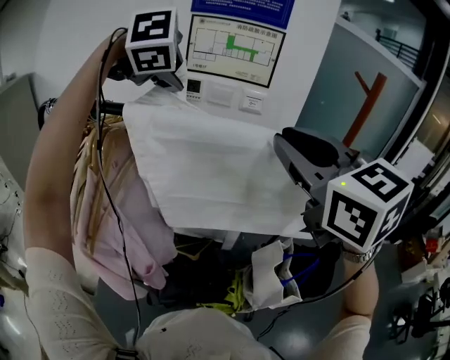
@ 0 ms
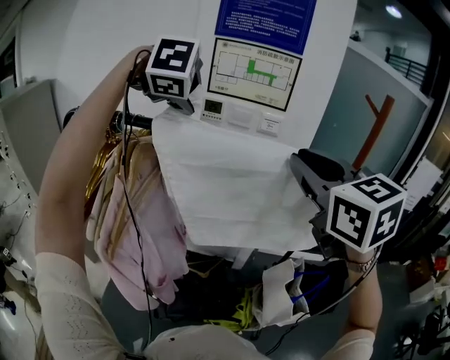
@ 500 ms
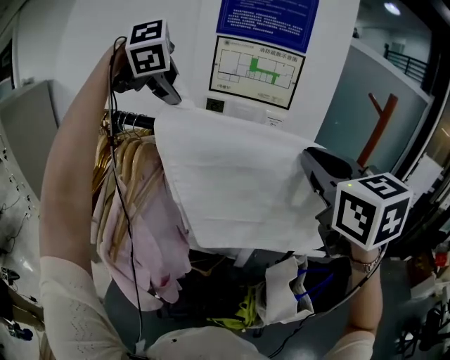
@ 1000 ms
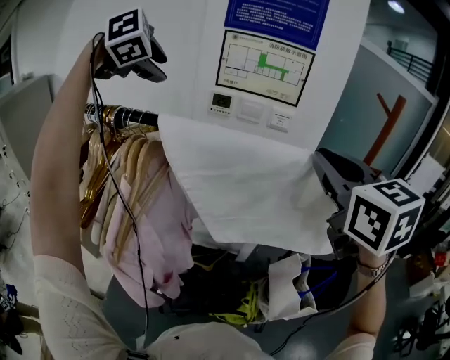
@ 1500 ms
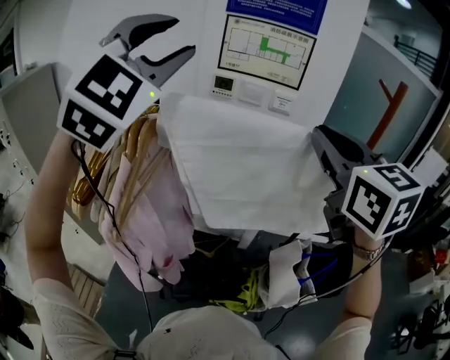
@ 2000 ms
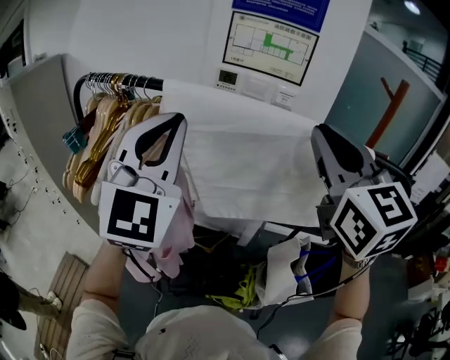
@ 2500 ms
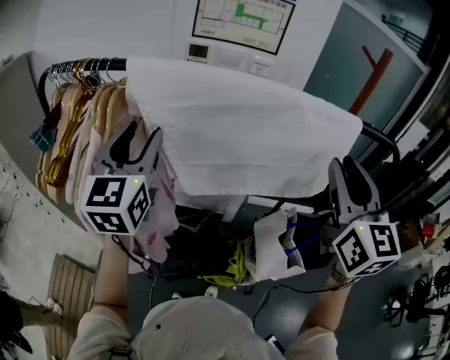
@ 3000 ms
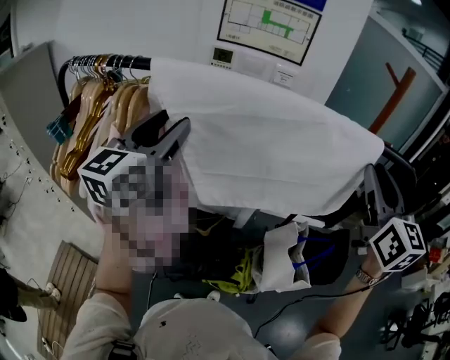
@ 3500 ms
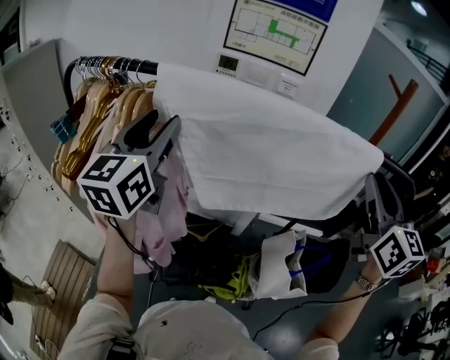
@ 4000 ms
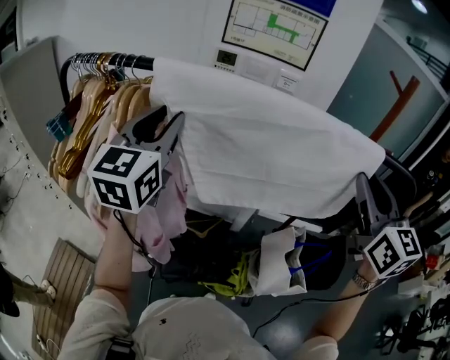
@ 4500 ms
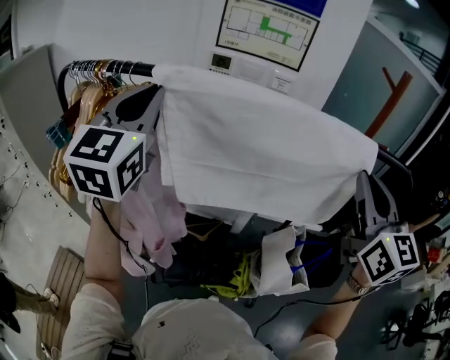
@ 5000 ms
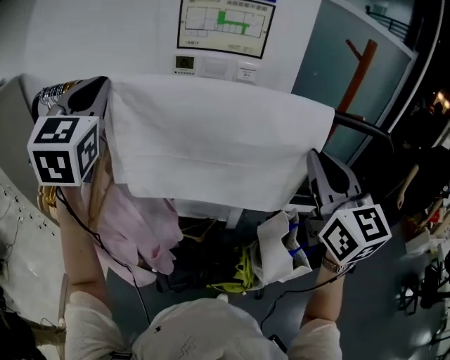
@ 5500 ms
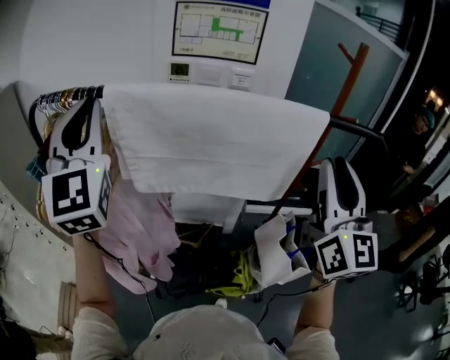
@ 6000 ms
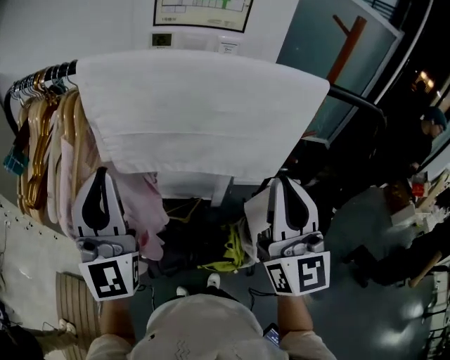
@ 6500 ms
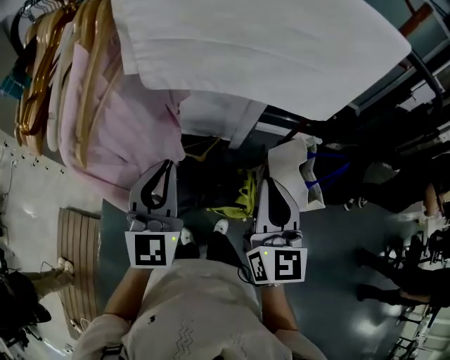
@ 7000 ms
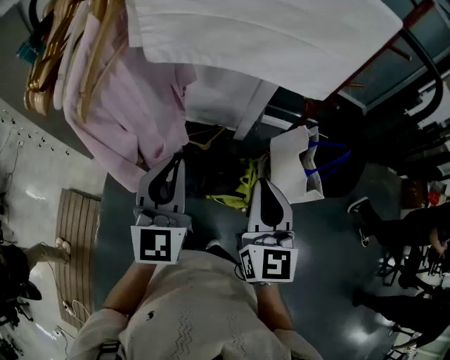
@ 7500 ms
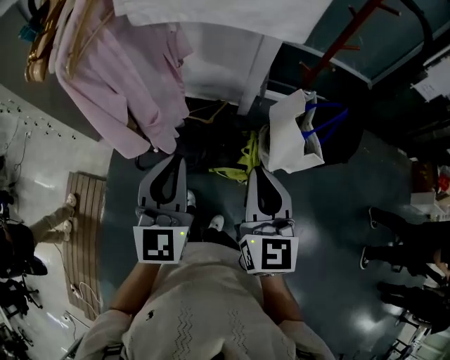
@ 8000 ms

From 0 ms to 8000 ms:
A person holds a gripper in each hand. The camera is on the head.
From 0 ms to 2000 ms: The left gripper goes roughly 20 cm backward, upward and to the left, angles its fingers upward, by roughly 60 degrees, and opens its fingers.
From 2000 ms to 4000 ms: The left gripper goes approximately 20 cm downward, rolls counterclockwise, seen from behind, by some 60 degrees, and closes, then reopens, while the right gripper travels to the right by roughly 15 cm.
From 4000 ms to 6000 ms: The left gripper is displaced upward by roughly 10 cm, swivels roughly 40 degrees, and closes up, while the right gripper is displaced to the left and backward by roughly 10 cm, and turns by approximately 20 degrees.
From 6000 ms to 8000 ms: The left gripper moves downward, backward and to the right, roughly 50 cm, and turns by approximately 40 degrees, while the right gripper moves downward and backward, some 40 cm, turns by roughly 30 degrees, and closes its fingers.

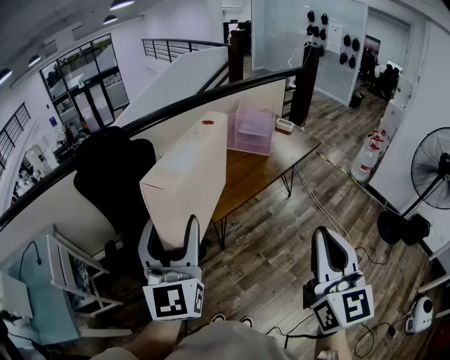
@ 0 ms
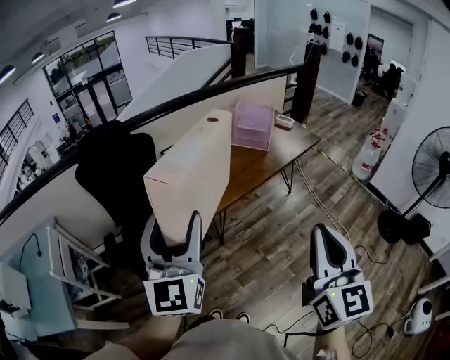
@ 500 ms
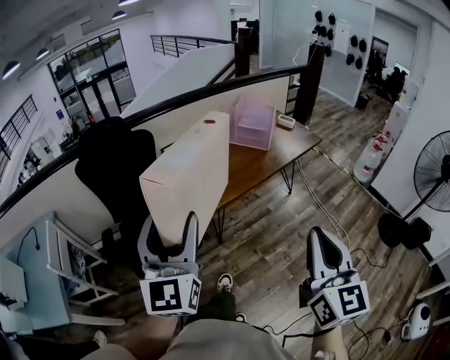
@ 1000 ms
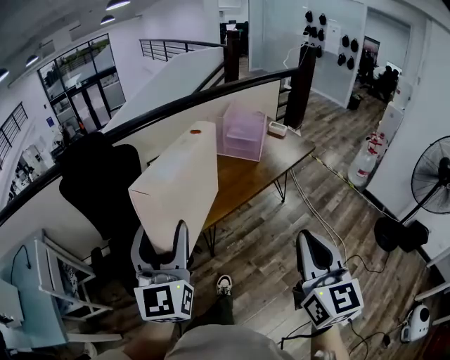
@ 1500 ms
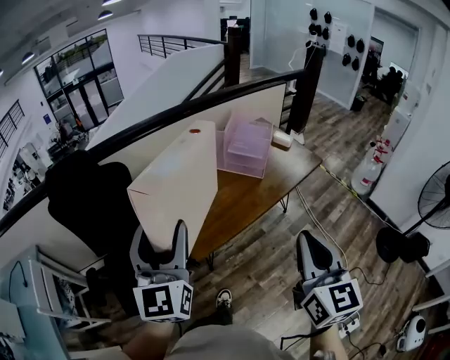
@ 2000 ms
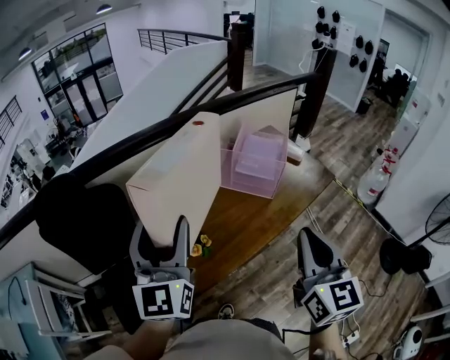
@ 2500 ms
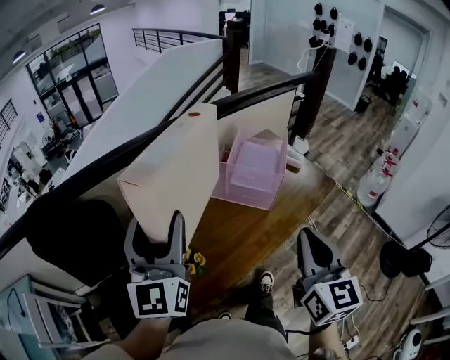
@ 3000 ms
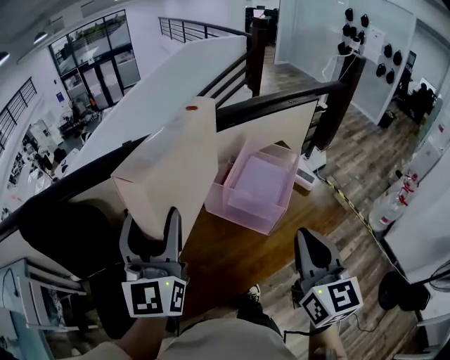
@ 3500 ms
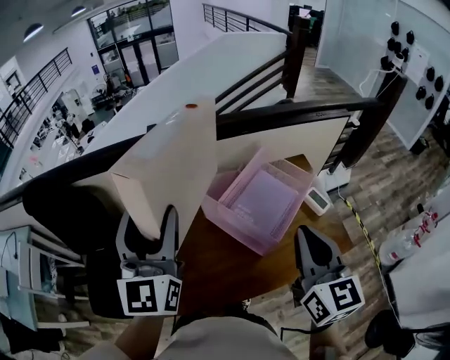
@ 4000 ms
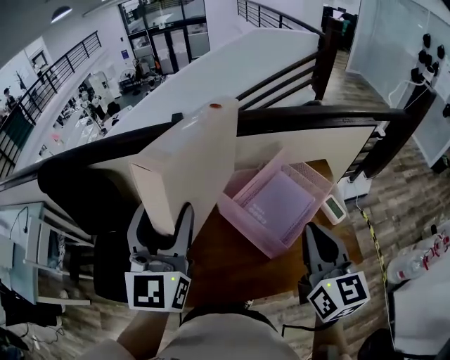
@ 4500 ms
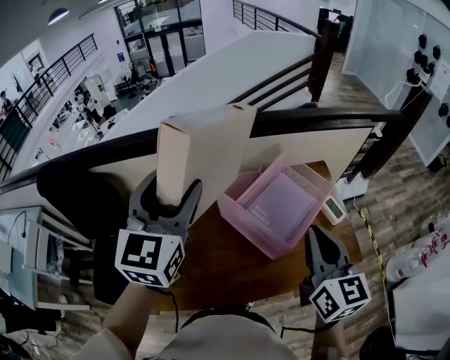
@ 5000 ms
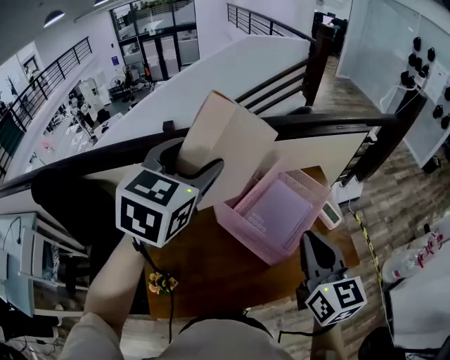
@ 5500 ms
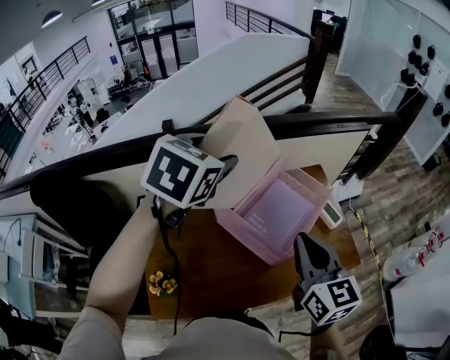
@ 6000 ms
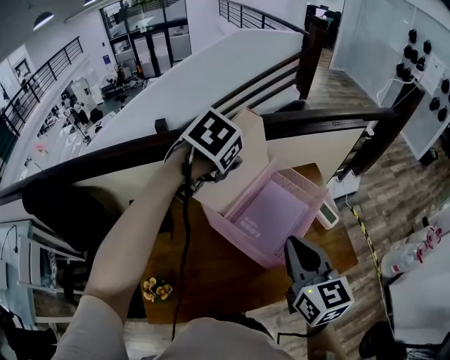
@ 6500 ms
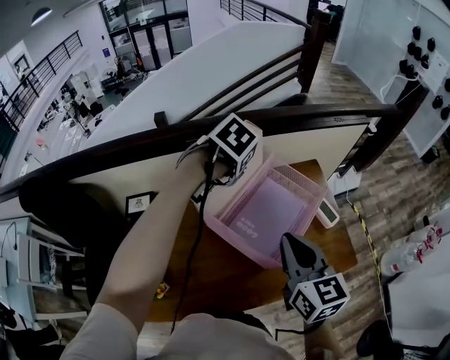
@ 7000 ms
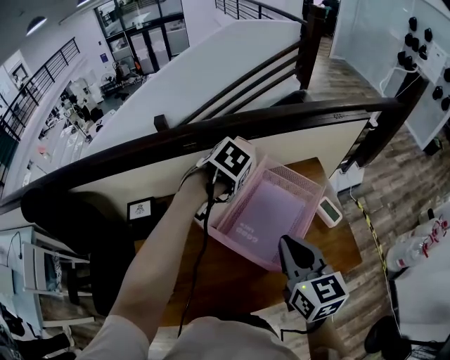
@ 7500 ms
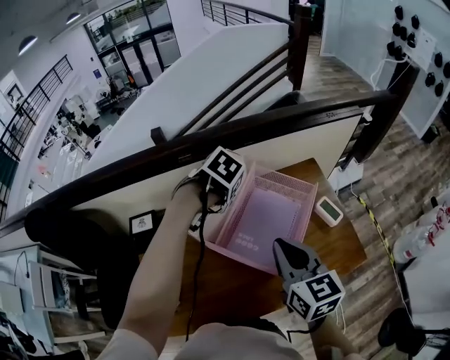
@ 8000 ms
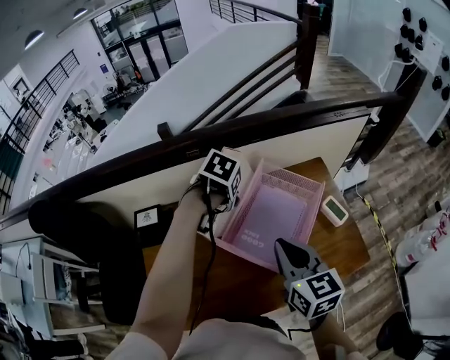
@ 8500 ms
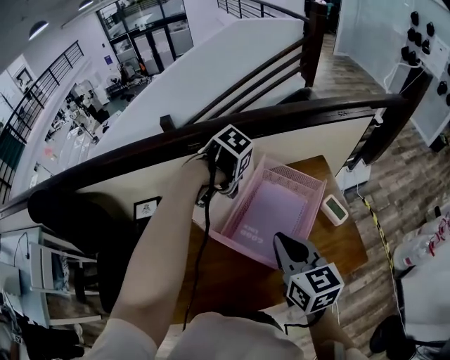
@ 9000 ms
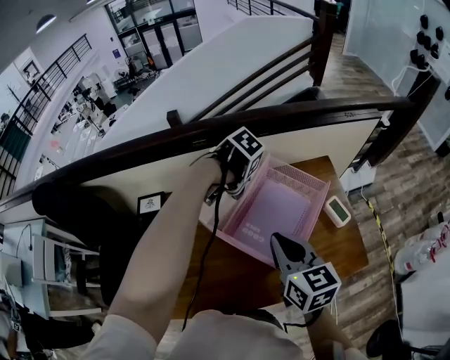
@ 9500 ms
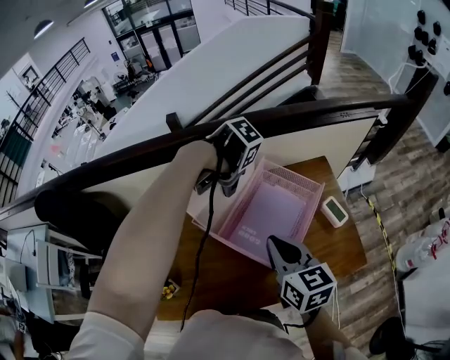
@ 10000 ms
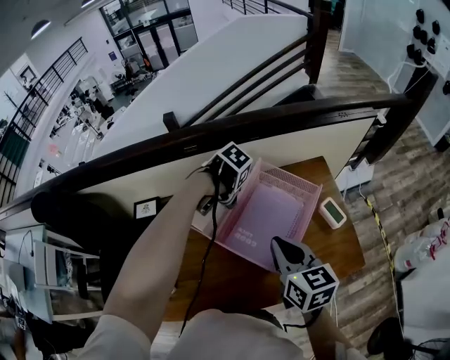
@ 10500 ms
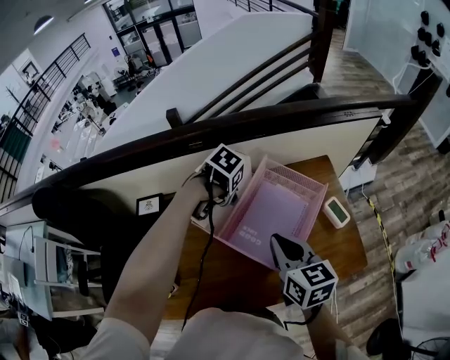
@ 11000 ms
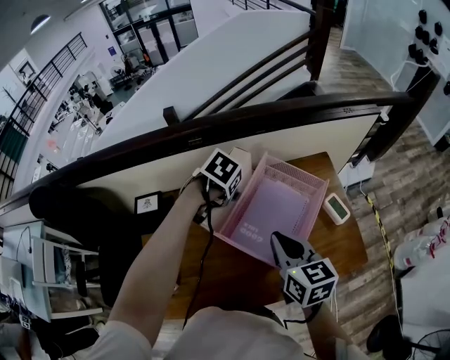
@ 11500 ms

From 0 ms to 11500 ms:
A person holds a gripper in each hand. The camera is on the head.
From 0 ms to 2000 ms: The grippers both shift forward by approximately 25 cm.
From 2000 ms to 4000 ms: Both grippers are carried forward, about 50 cm. The right gripper turns by roughly 20 degrees.
From 4000 ms to 6000 ms: The right gripper moves approximately 5 cm, while the left gripper travels forward and to the right by approximately 20 cm, and points its fingers approximately 40 degrees further downward.
From 6000 ms to 7500 ms: The left gripper shifts some 20 cm downward, and tips its fingers downward by roughly 40 degrees. Meanwhile the right gripper shifts approximately 5 cm downward.
From 7500 ms to 9500 ms: The left gripper swivels about 20 degrees.
From 9500 ms to 11500 ms: The left gripper rotates about 20 degrees.

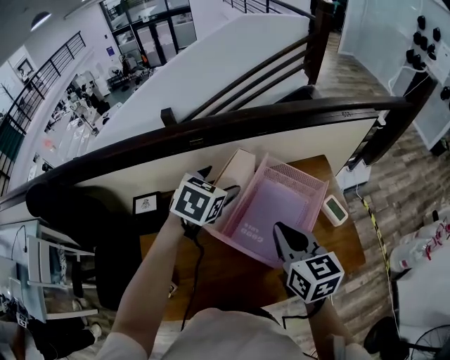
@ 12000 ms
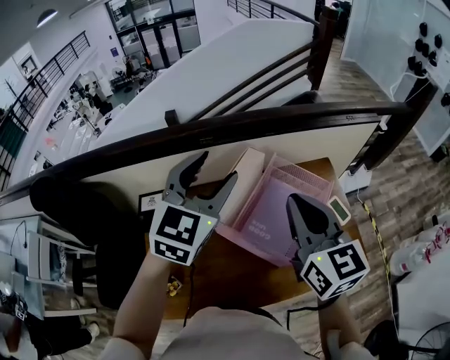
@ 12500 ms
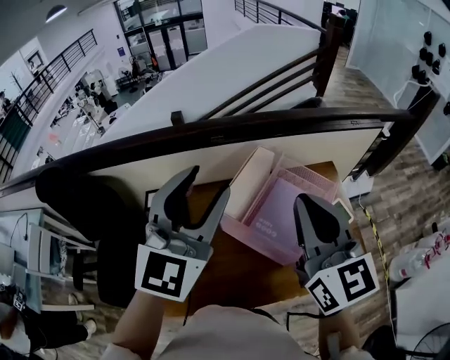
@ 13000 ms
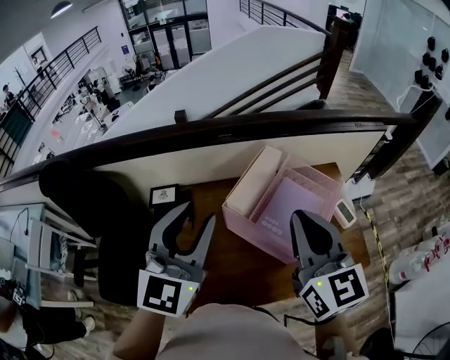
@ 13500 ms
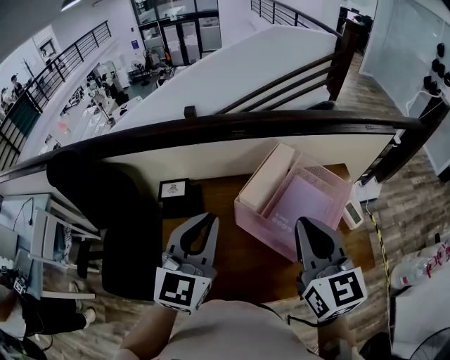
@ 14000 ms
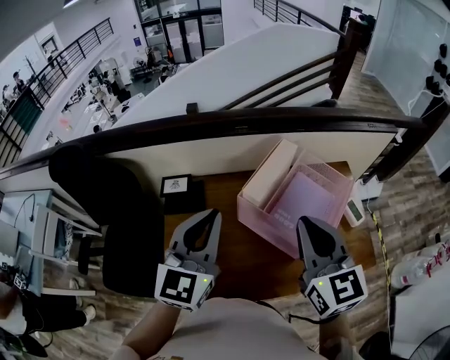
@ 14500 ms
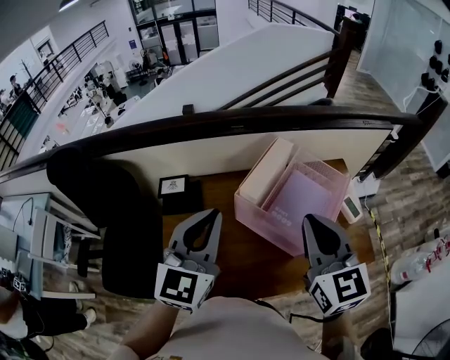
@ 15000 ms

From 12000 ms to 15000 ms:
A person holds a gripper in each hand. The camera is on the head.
From 12000 ms to 13500 ms: The left gripper moves backward, upward and to the left, some 30 cm, points its fingers roughly 40 degrees further upward, and closes its fingers, while the right gripper is displaced upward, to the left and backward by some 15 cm, and swivels approximately 20 degrees.
From 13500 ms to 15000 ms: The left gripper closes up.

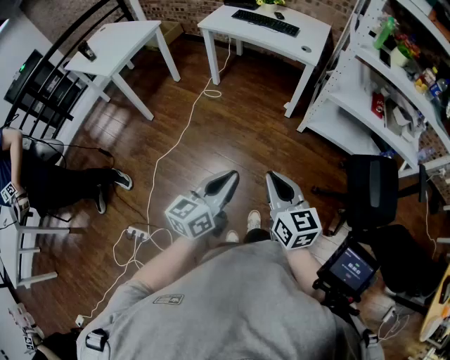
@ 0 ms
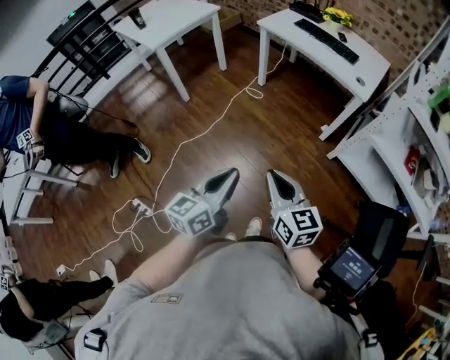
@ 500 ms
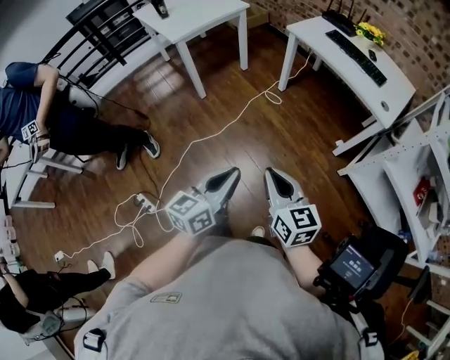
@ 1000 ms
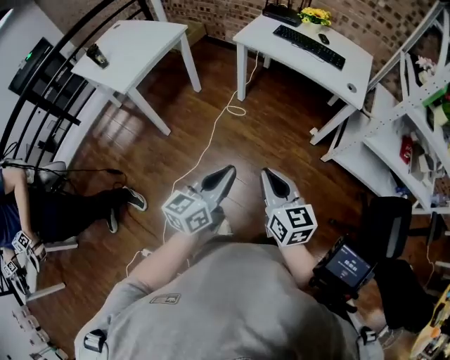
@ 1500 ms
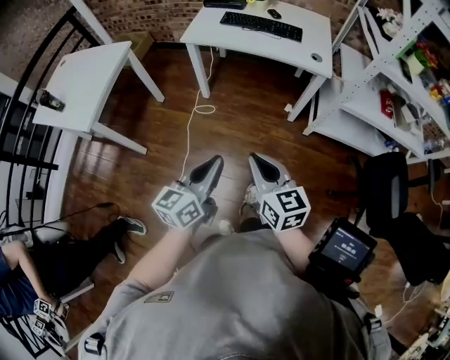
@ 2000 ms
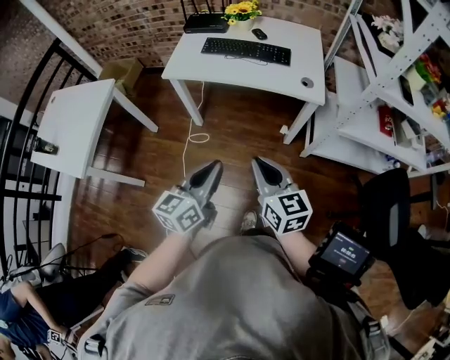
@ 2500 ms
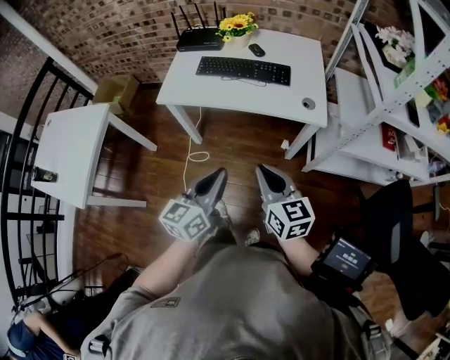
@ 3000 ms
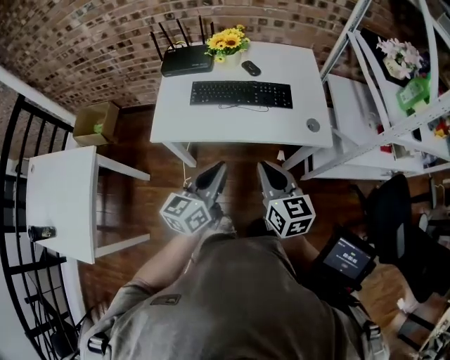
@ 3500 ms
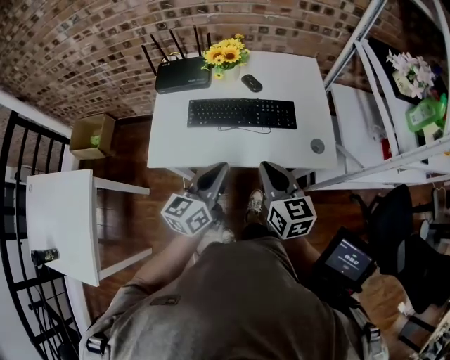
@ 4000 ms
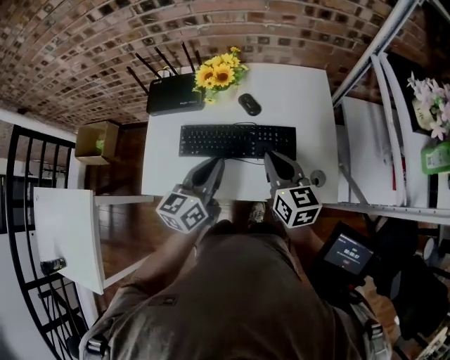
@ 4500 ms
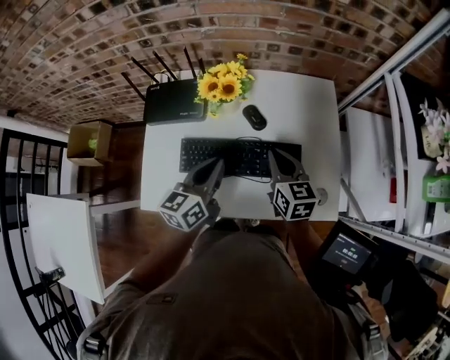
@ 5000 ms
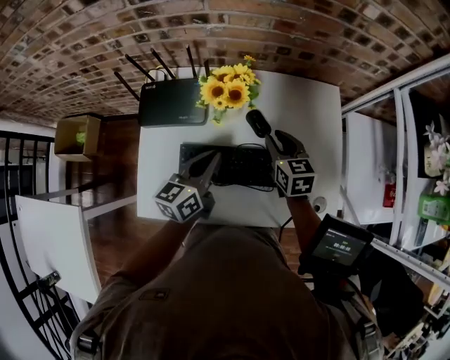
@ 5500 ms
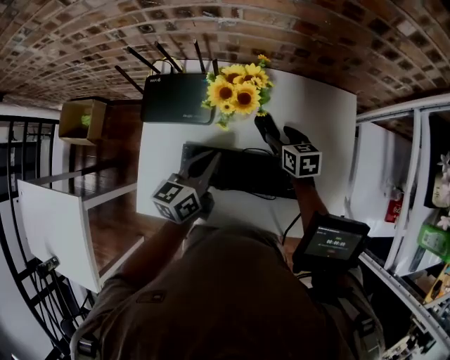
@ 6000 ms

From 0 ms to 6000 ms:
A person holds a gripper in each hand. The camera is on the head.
From 0 ms to 2000 ms: The right gripper moves approximately 35 cm; the left gripper moves approximately 35 cm.
From 2000 ms to 4000 ms: The two grippers travel together, forward, about 50 cm.
From 4000 ms to 6000 ms: The left gripper is displaced forward by approximately 30 cm. Meanwhile the right gripper moves forward and downward, some 40 cm, turns by about 30 degrees, and opens up.
